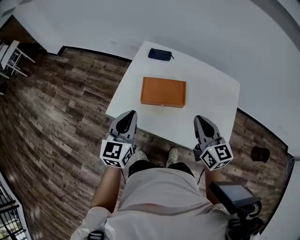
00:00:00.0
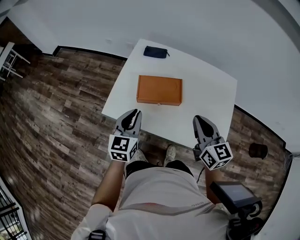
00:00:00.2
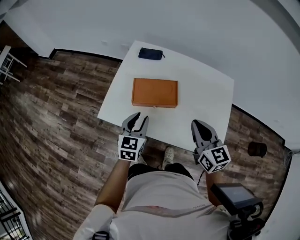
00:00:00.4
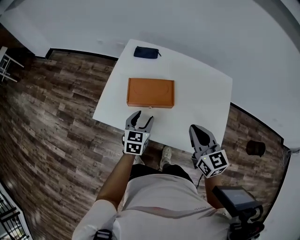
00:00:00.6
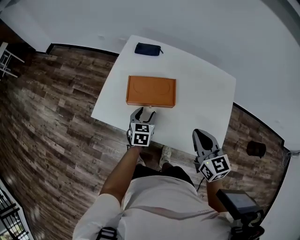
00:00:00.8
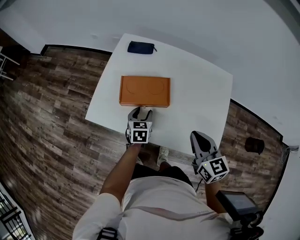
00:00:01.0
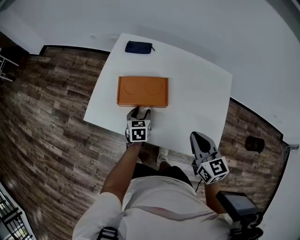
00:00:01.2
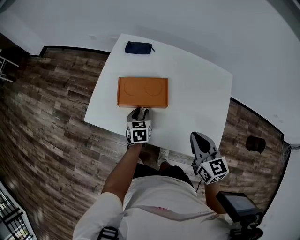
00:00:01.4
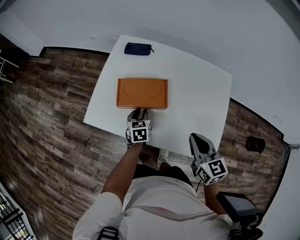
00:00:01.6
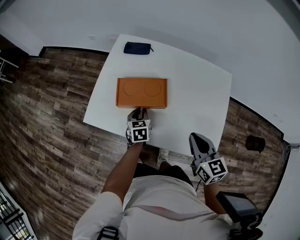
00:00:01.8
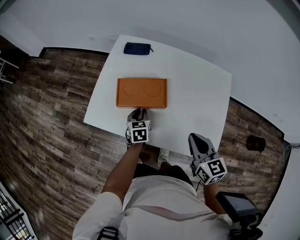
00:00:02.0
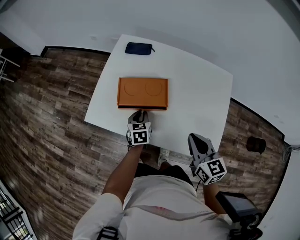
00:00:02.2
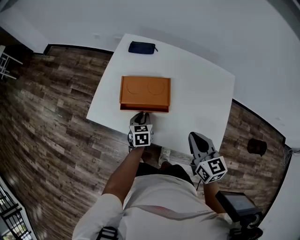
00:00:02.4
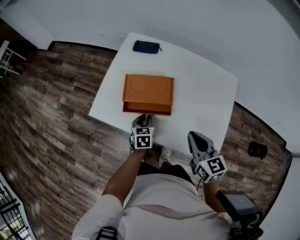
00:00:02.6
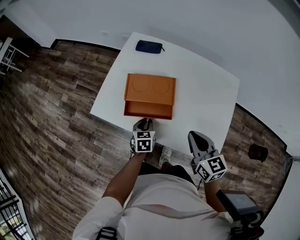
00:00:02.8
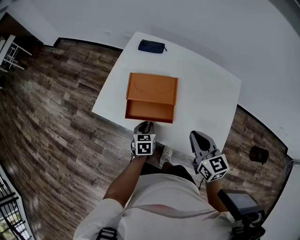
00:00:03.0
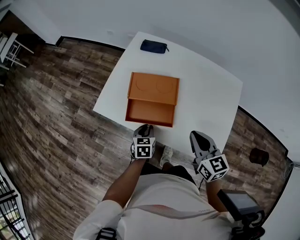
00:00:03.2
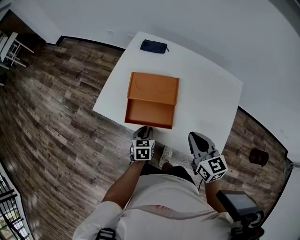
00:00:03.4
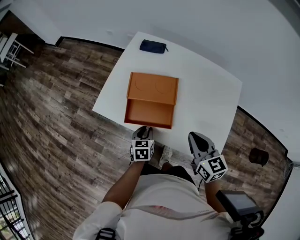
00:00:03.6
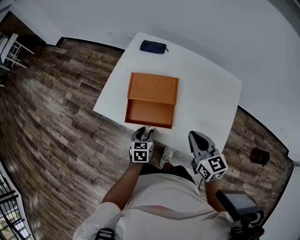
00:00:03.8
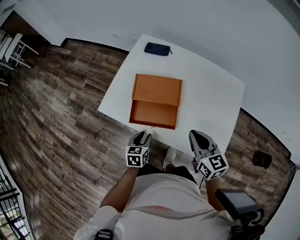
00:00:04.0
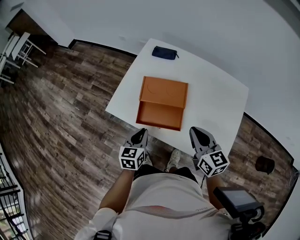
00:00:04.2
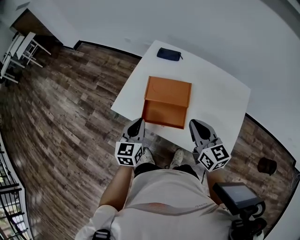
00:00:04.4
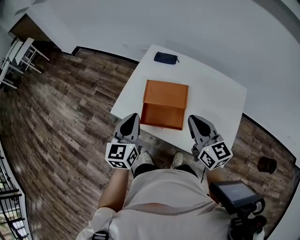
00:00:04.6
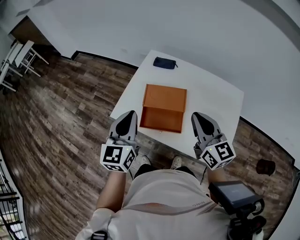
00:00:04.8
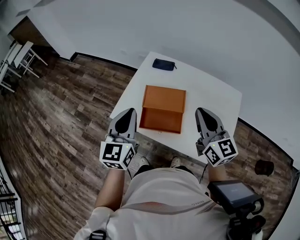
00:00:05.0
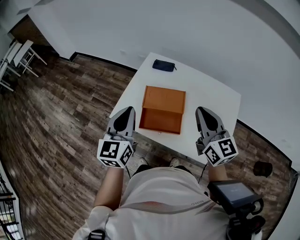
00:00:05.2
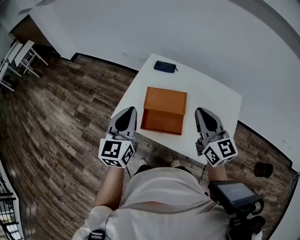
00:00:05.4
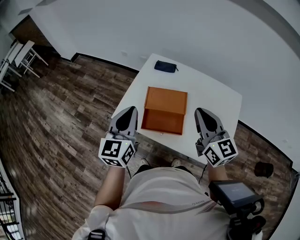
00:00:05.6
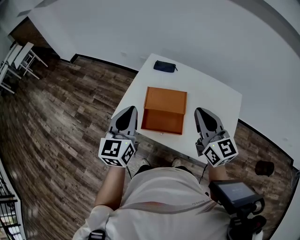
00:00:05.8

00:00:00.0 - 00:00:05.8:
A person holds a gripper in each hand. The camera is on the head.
00:00:00.0 - 00:00:01.4: The left gripper goes about 30 cm downward and to the right, tips its fingers downward by roughly 30 degrees, and opens up; the right gripper shifts approximately 10 cm to the right and downward.
00:00:01.4 - 00:00:02.8: The left gripper heads backward, covering about 5 cm.
00:00:02.8 - 00:00:04.4: The right gripper is displaced to the left and upward by about 10 cm, while the left gripper is displaced upward and to the left by about 20 cm, and changes its angle by about 30 degrees.
00:00:04.4 - 00:00:05.8: The two grippers go about 15 cm upward.

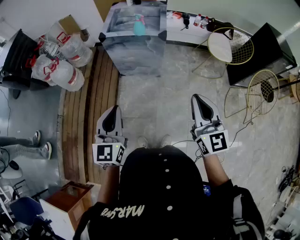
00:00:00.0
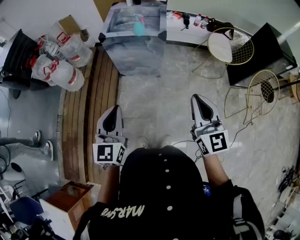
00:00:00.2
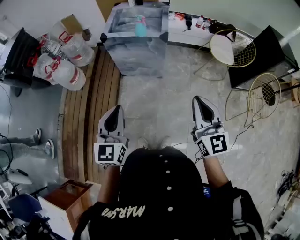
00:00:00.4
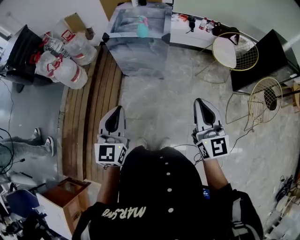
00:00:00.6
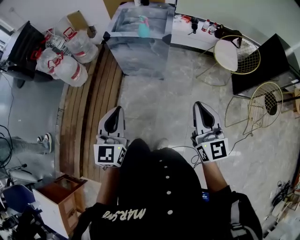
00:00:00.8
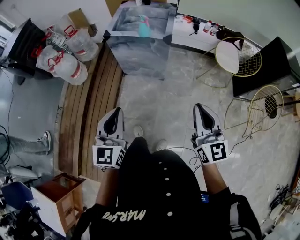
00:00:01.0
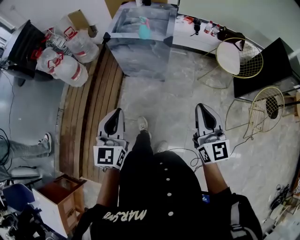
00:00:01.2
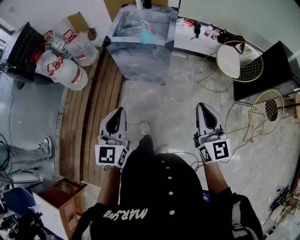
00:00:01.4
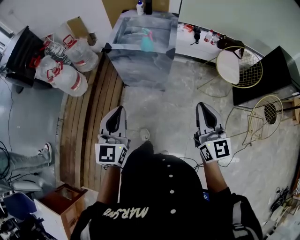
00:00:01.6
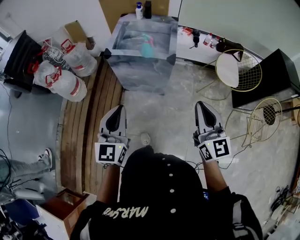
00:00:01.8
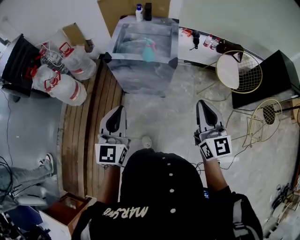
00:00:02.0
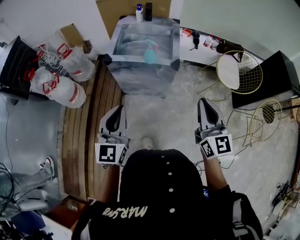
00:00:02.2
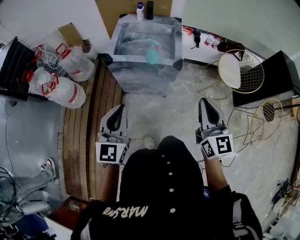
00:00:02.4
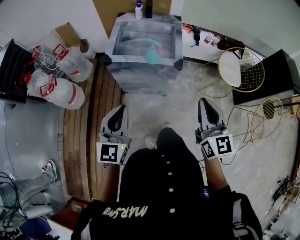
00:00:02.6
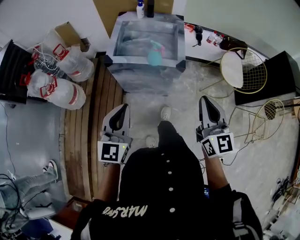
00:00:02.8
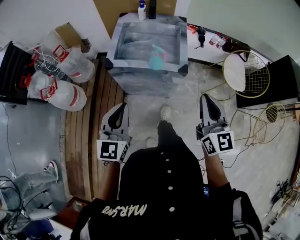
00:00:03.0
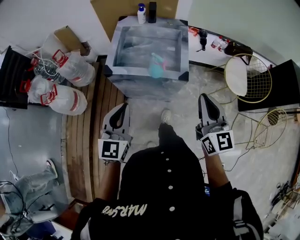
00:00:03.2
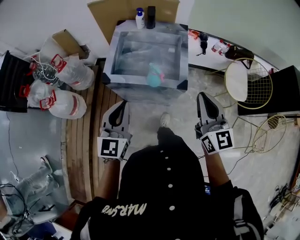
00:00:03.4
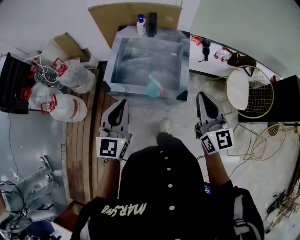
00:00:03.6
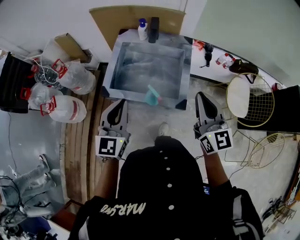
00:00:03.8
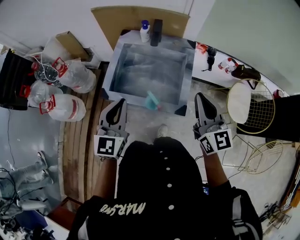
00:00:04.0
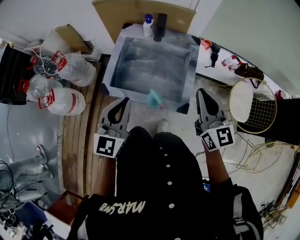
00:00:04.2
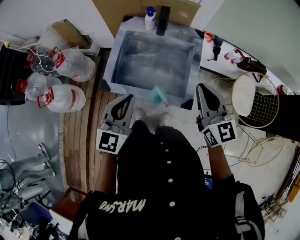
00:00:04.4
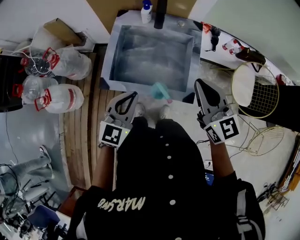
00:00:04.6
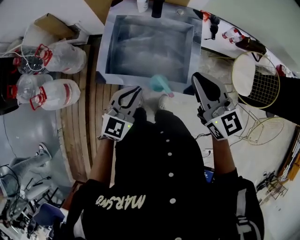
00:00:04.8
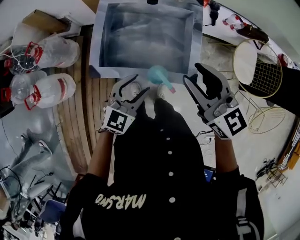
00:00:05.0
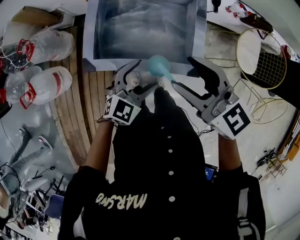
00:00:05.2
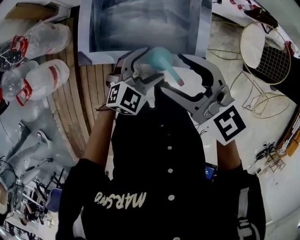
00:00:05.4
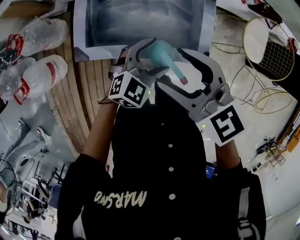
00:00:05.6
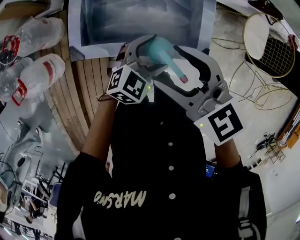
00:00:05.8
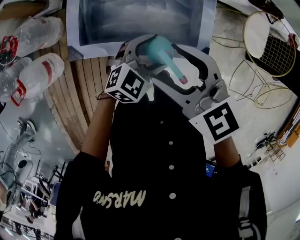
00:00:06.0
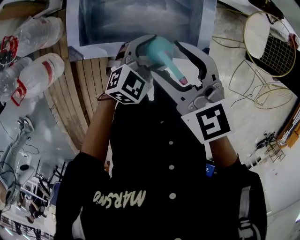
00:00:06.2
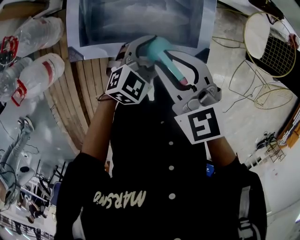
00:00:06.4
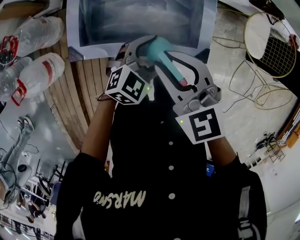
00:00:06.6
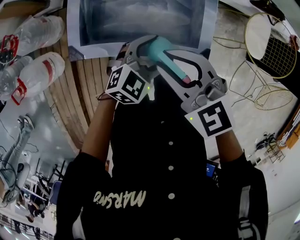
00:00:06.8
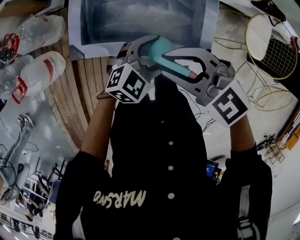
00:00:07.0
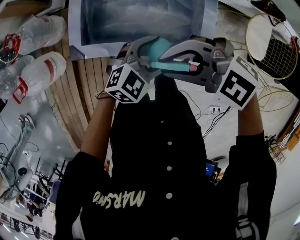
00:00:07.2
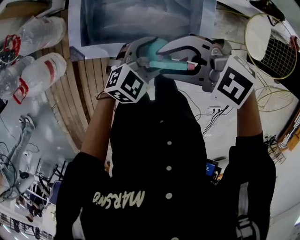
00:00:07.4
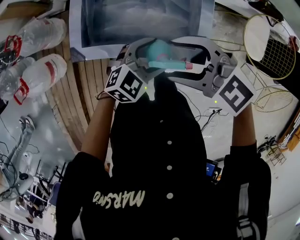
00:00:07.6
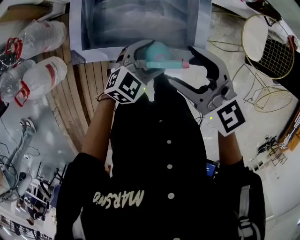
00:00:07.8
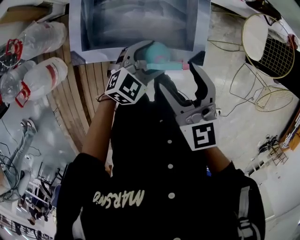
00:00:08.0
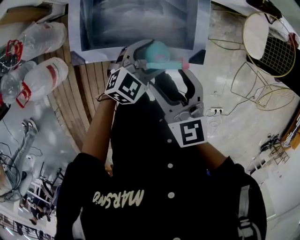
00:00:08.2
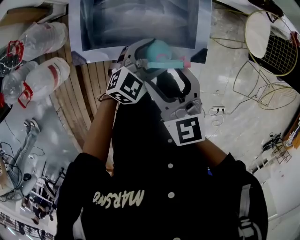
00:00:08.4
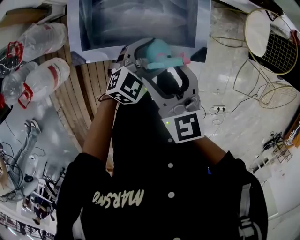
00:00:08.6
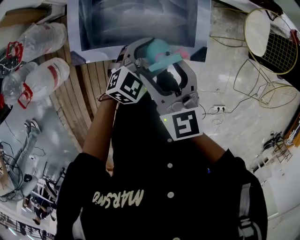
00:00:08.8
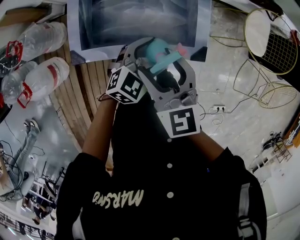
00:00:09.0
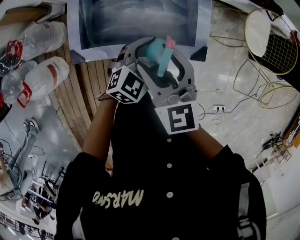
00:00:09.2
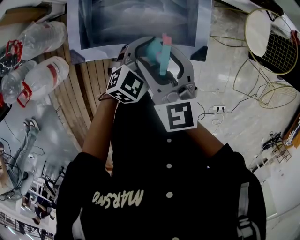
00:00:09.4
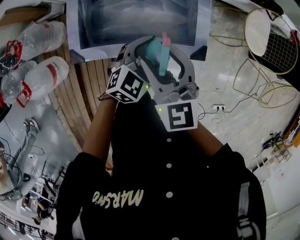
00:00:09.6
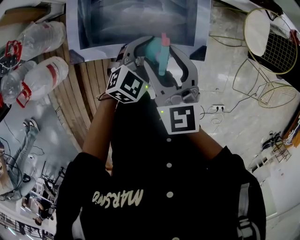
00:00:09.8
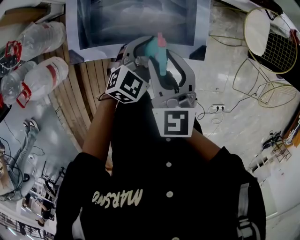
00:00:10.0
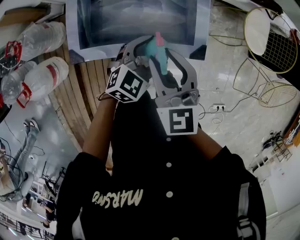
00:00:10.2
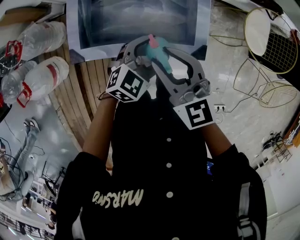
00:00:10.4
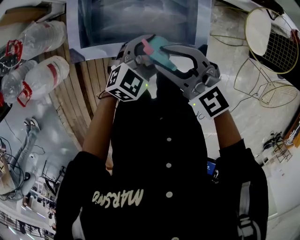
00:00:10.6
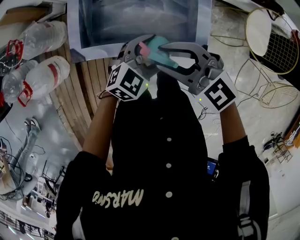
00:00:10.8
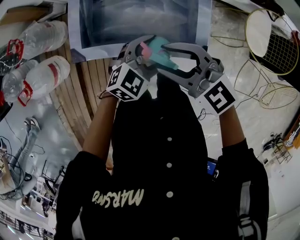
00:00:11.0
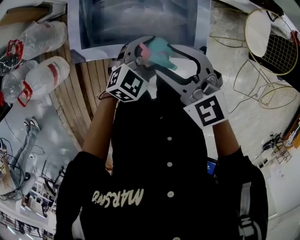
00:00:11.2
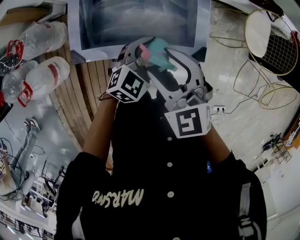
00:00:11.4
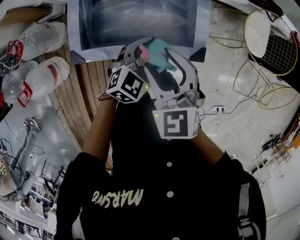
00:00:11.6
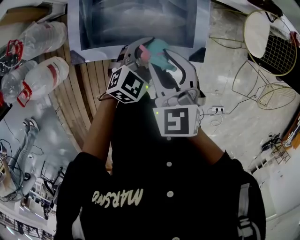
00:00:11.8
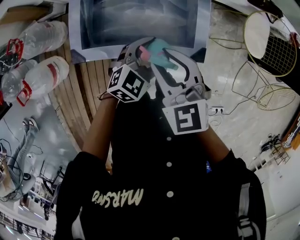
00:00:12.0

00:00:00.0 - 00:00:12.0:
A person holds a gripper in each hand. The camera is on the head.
00:00:00.0 - 00:00:01.6: The grippers both shift forward by some 10 cm.
00:00:01.6 - 00:00:03.0: The grippers both shift forward by some 25 cm.
00:00:03.0 - 00:00:04.4: Both grippers travel together forward, approximately 30 cm.
00:00:04.4 - 00:00:06.0: The left gripper heads downward and to the right, covering roughly 25 cm, rotates approximately 50 degrees, and opens its fingers; the right gripper goes roughly 20 cm to the left and downward, changes its angle by approximately 30 degrees, and opens.
00:00:06.0 - 00:00:07.6: The right gripper rotates some 30 degrees, and closes, then opens again.
00:00:07.6 - 00:00:09.0: The right gripper rotates some 50 degrees.
00:00:09.0 - 00:00:10.4: The right gripper closes its fingers.

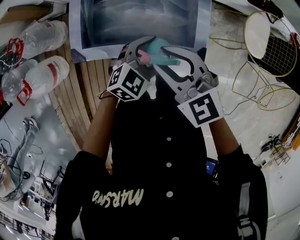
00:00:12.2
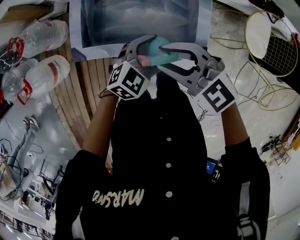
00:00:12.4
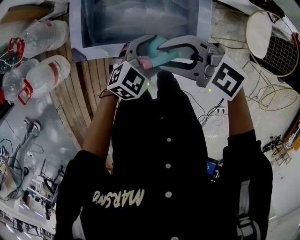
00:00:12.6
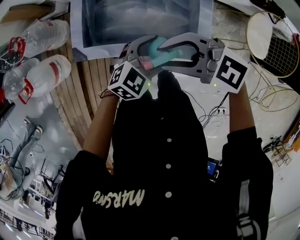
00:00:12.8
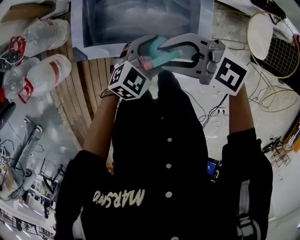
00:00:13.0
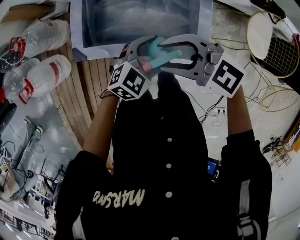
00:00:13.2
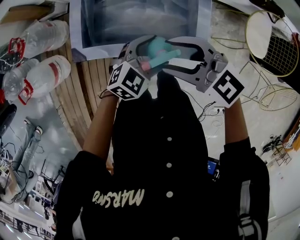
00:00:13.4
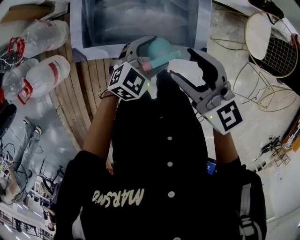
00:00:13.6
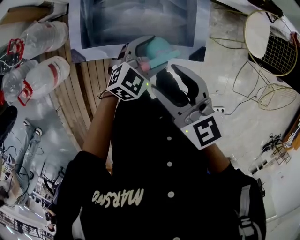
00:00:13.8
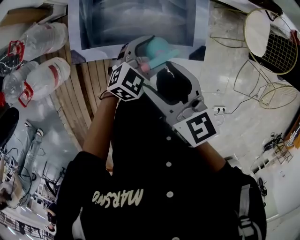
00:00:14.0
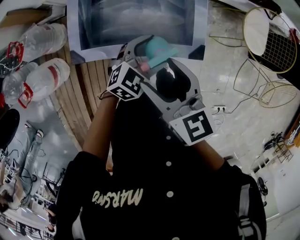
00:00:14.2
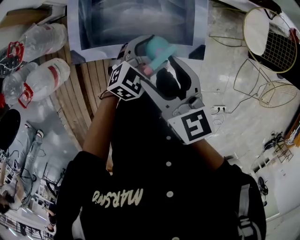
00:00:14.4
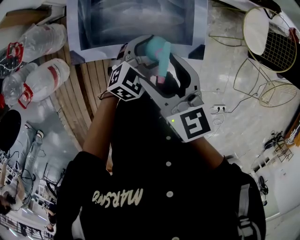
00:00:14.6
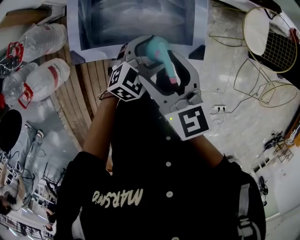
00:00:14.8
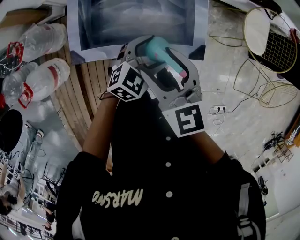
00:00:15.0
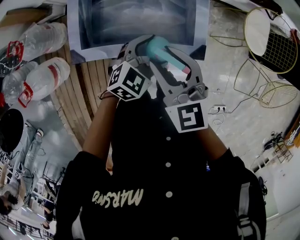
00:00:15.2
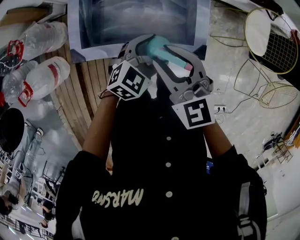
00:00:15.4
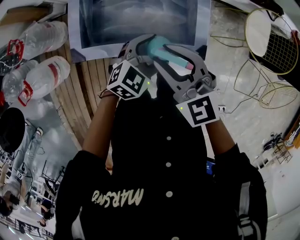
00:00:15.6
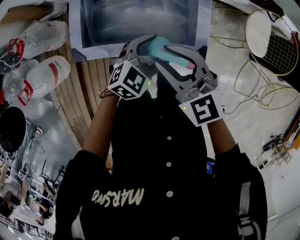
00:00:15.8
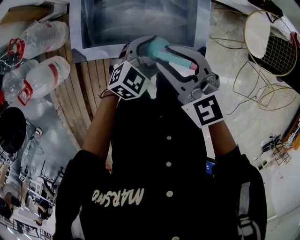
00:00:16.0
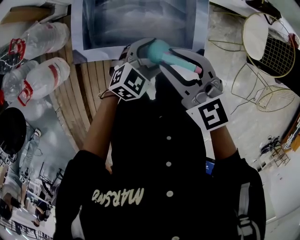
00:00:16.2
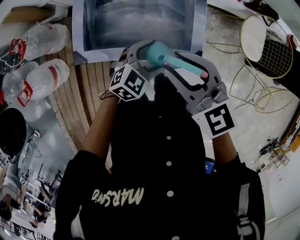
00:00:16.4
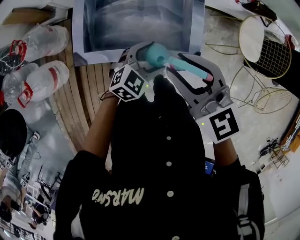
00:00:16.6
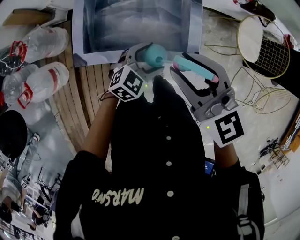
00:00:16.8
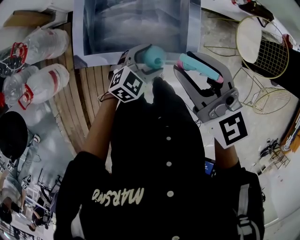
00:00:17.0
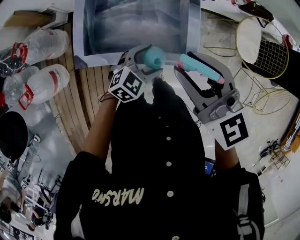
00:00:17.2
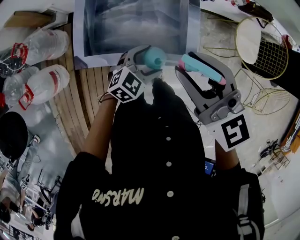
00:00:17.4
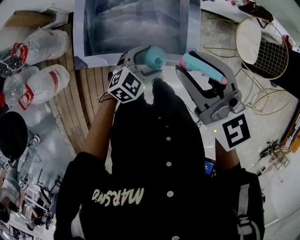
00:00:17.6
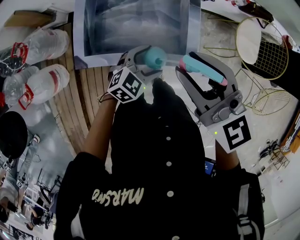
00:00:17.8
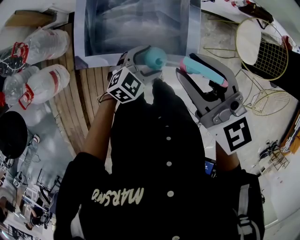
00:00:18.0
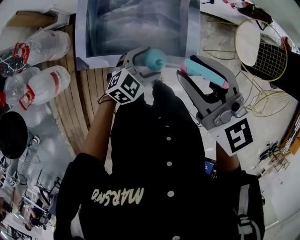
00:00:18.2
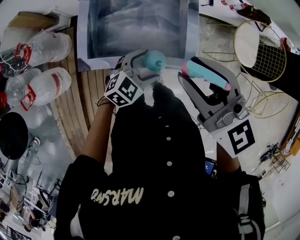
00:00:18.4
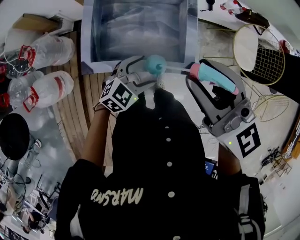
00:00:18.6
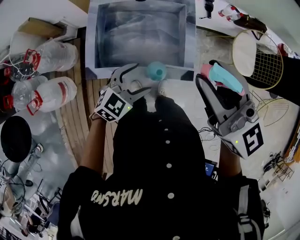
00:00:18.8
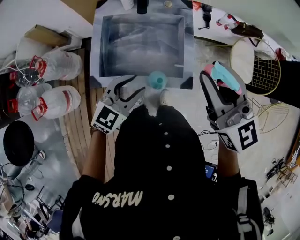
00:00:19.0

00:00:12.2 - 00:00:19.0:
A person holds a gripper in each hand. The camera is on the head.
00:00:12.2 - 00:00:13.6: The right gripper changes place by about 5 cm, and swivels roughly 30 degrees.
00:00:13.6 - 00:00:15.0: The right gripper changes place by roughly 5 cm.
00:00:15.0 - 00:00:16.2: The right gripper closes.
00:00:16.2 - 00:00:17.6: The right gripper shifts some 10 cm upward.
00:00:17.6 - 00:00:19.0: The left gripper moves upward and to the left, some 15 cm, and closes; the right gripper is displaced upward and to the right by some 10 cm.
